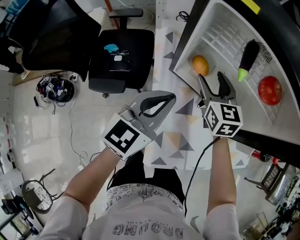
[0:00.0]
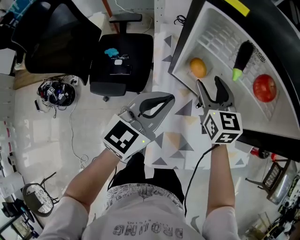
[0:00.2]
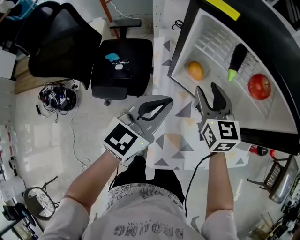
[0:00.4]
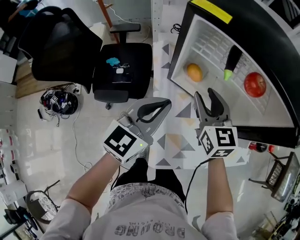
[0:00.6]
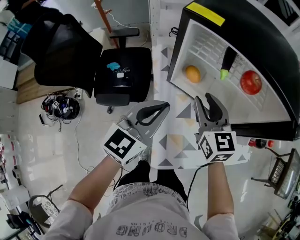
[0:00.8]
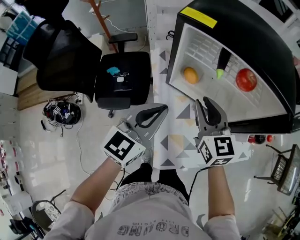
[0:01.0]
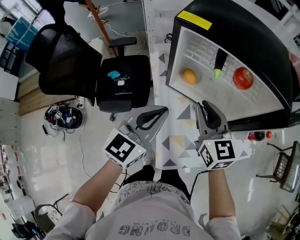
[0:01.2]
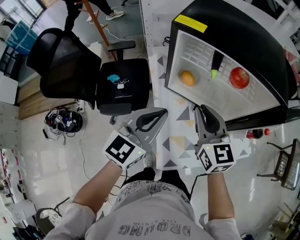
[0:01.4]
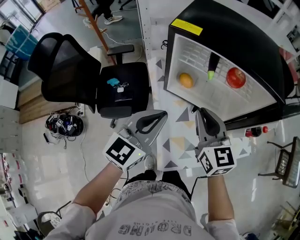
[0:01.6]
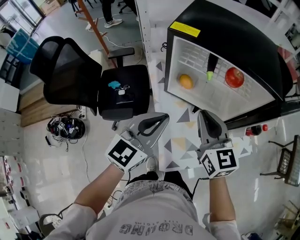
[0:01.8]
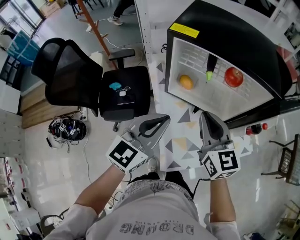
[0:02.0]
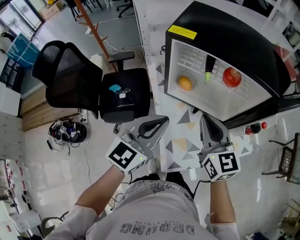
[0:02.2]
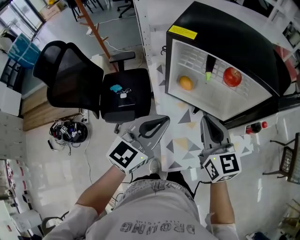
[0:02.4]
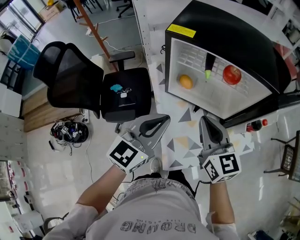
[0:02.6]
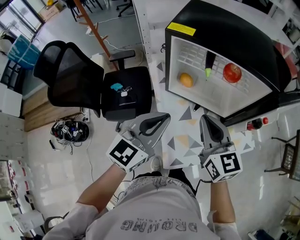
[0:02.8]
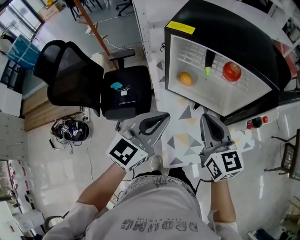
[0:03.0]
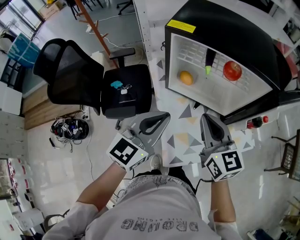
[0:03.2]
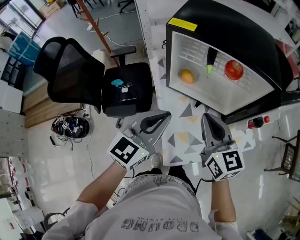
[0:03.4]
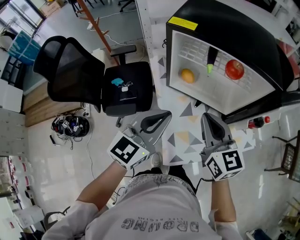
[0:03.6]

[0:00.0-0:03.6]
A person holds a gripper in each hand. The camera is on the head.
0:00.0 to 0:01.8: The left gripper heads upward and backward, covering approximately 15 cm. The right gripper moves backward and upward, about 25 cm, and closes its fingers.
0:01.8 to 0:03.6: The grippers make only small movements.

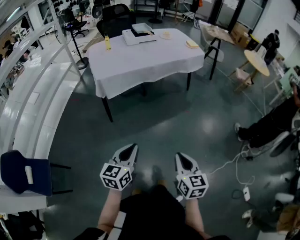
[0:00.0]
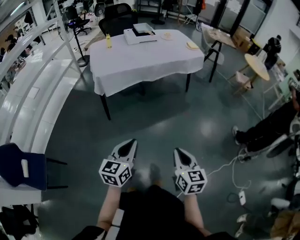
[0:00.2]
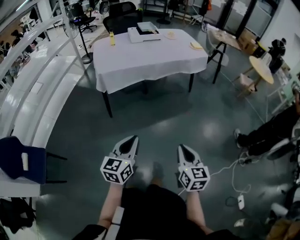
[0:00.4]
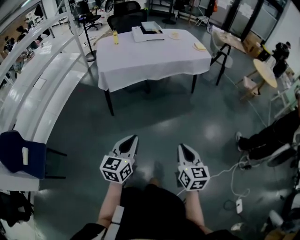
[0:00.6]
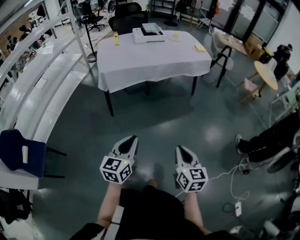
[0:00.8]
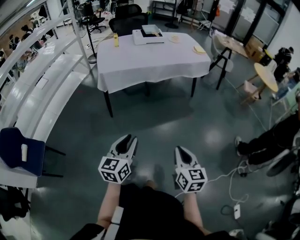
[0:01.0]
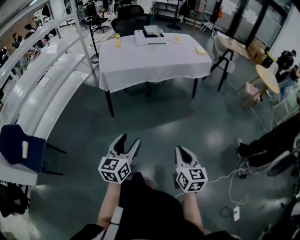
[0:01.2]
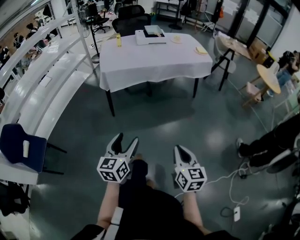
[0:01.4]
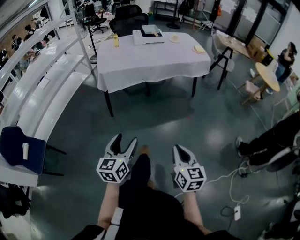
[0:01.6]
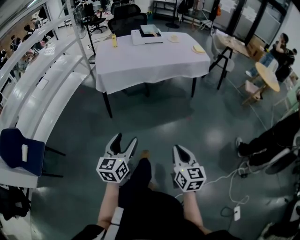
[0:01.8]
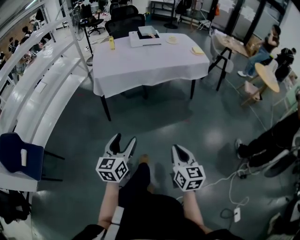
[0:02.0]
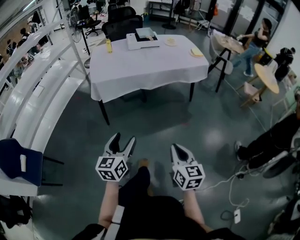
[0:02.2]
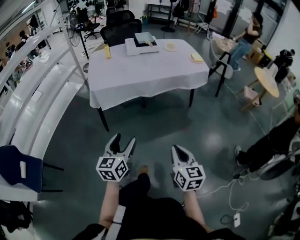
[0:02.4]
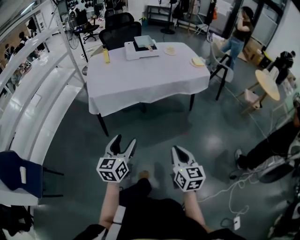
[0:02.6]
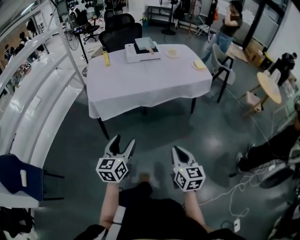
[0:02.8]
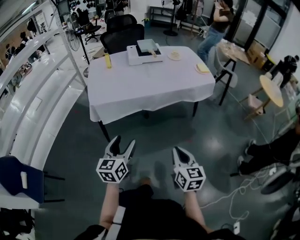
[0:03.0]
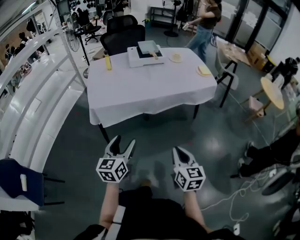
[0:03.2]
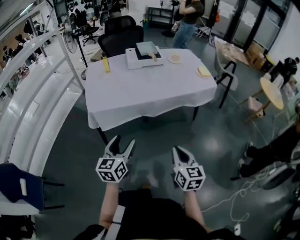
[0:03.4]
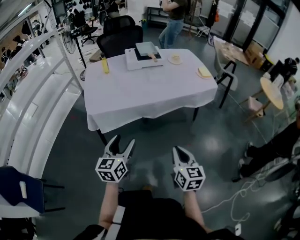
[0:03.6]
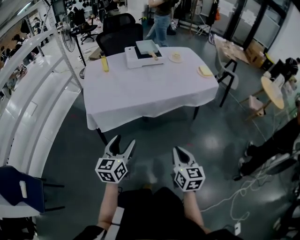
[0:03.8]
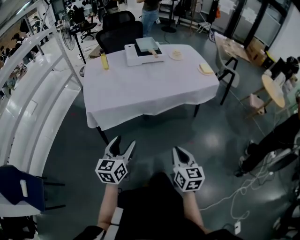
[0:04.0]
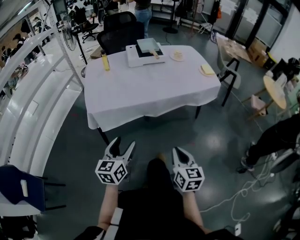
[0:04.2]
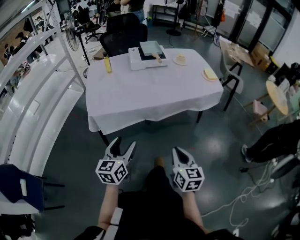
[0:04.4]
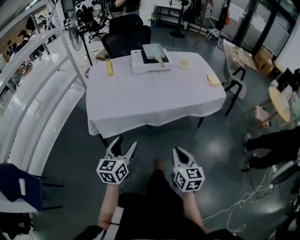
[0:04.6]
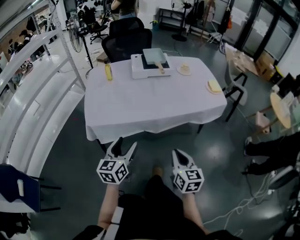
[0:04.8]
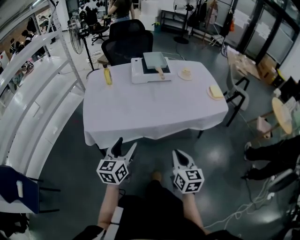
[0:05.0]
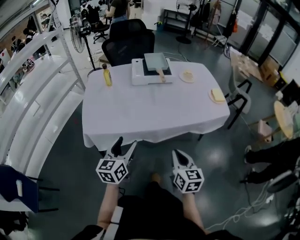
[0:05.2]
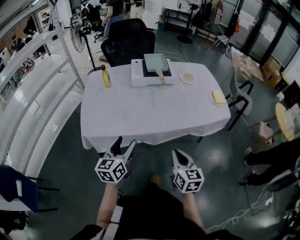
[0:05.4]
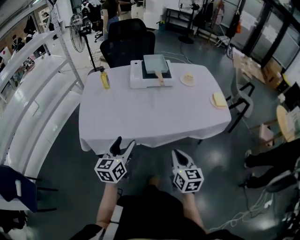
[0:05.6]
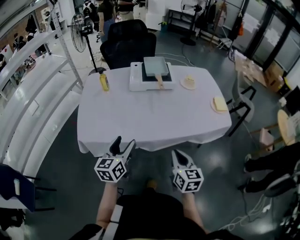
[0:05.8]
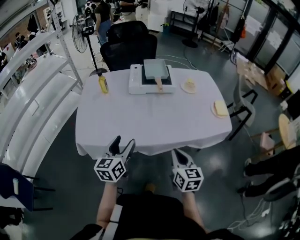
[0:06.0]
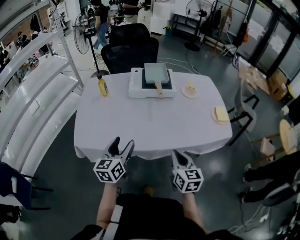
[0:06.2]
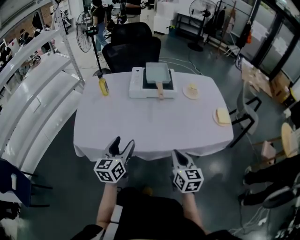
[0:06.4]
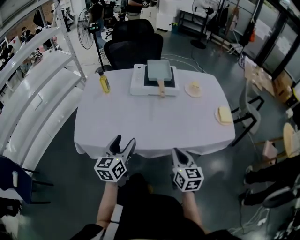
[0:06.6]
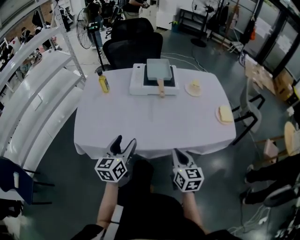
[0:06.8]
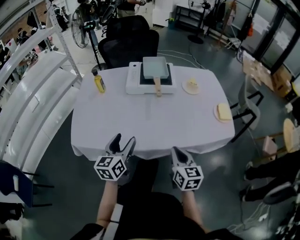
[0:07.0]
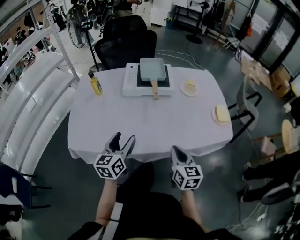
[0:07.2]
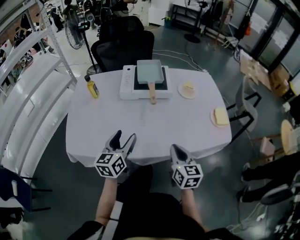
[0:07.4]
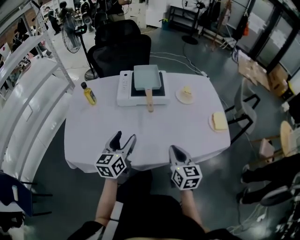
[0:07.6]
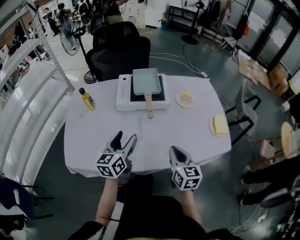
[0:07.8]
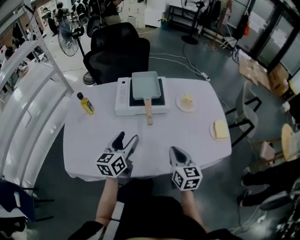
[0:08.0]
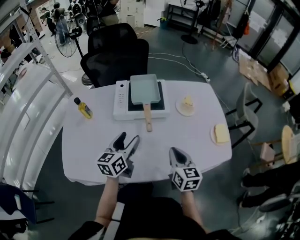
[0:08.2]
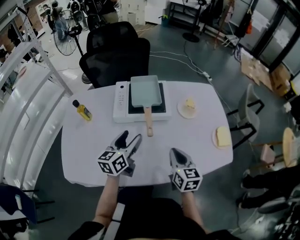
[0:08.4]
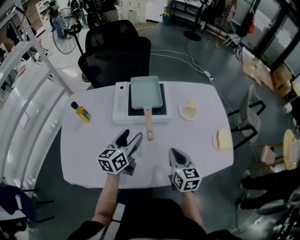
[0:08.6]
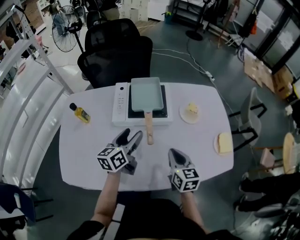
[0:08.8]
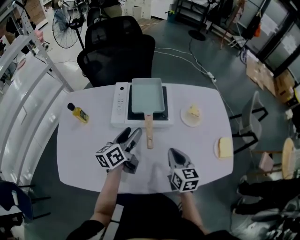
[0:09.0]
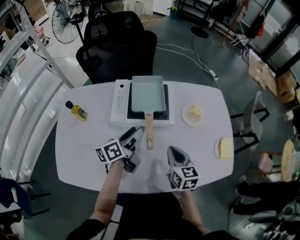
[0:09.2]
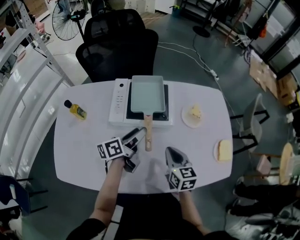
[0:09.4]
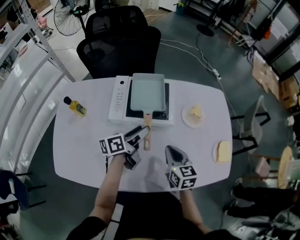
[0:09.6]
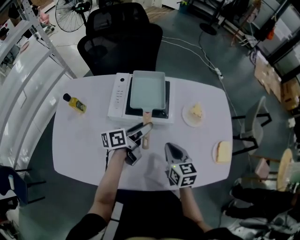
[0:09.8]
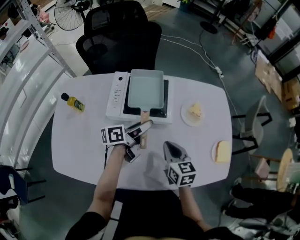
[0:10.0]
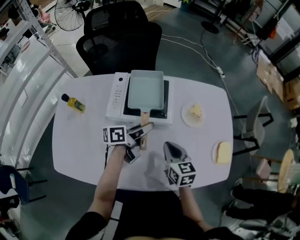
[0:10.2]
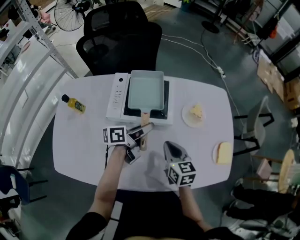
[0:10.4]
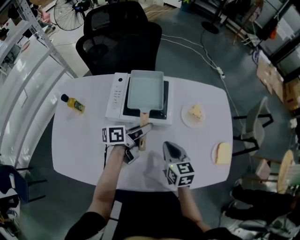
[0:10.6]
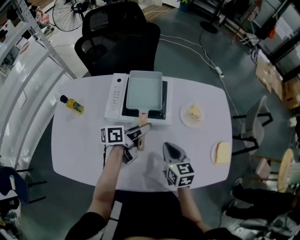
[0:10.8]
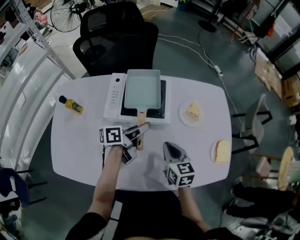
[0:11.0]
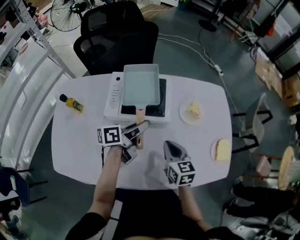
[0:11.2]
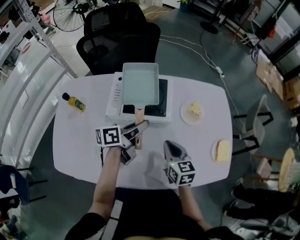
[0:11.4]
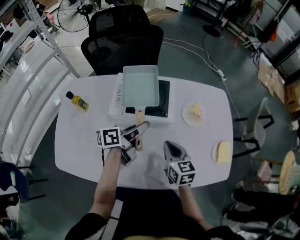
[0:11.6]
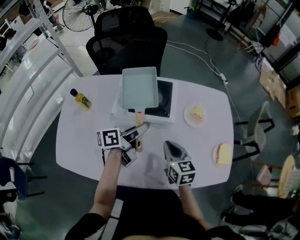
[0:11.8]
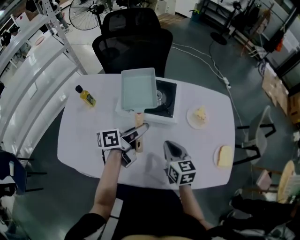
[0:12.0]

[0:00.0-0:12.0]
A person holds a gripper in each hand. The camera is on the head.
0:00.0 to 0:01.6: Both grippers move to the right, approximately 10 cm. The left gripper opens up.
0:01.6 to 0:03.0: Both grippers move forward, about 30 cm.
0:03.0 to 0:04.4: Both grippers travel together forward, some 10 cm.
0:04.4 to 0:06.0: The two grippers go about 30 cm forward.
0:06.0 to 0:07.6: The right gripper is displaced forward by approximately 15 cm; the left gripper moves forward and to the right, approximately 15 cm.
0:07.6 to 0:09.0: Both grippers travel together forward, roughly 20 cm. The left gripper rotates roughly 30 degrees.
0:09.0 to 0:10.4: The left gripper heads to the right and forward, covering approximately 10 cm, swivels about 30 degrees, and closes its fingers. The right gripper changes place by approximately 5 cm.
0:10.4 to 0:12.0: The left gripper travels backward by approximately 5 cm.

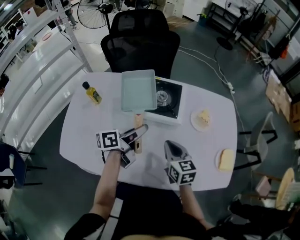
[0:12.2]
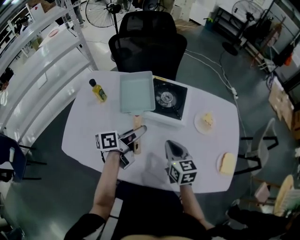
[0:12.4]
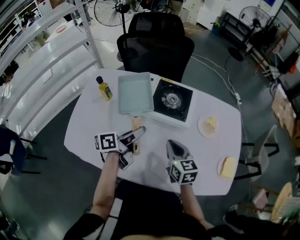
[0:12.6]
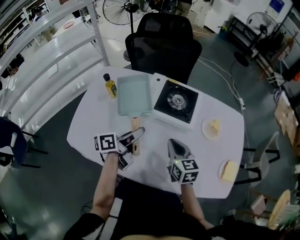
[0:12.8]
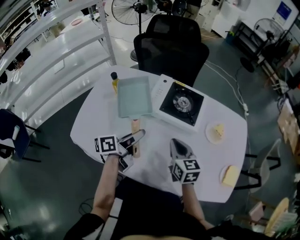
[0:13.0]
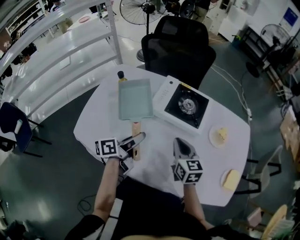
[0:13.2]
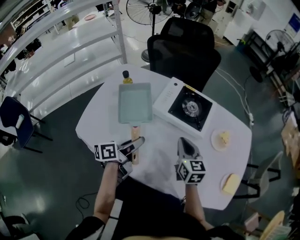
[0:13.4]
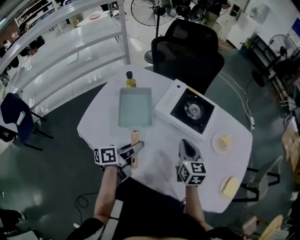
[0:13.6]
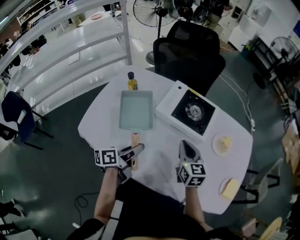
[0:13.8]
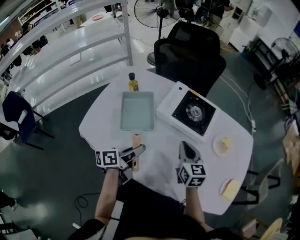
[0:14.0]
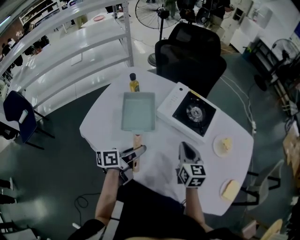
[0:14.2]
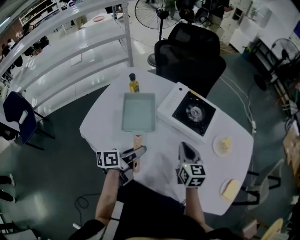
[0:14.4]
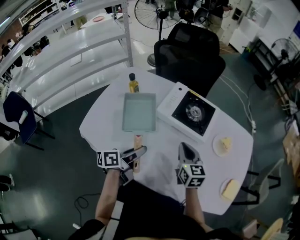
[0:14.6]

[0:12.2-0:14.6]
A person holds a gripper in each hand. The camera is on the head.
0:12.2 to 0:13.4: The right gripper travels to the left by about 5 cm; the left gripper goes some 15 cm to the left and backward.
0:13.4 to 0:14.6: The grippers stay close to where they were, moving slightly.

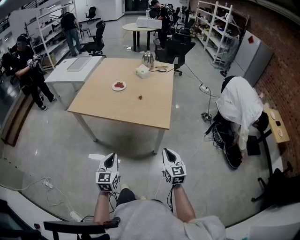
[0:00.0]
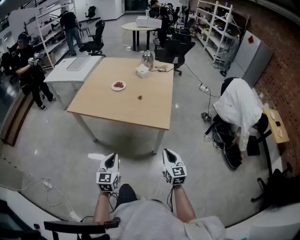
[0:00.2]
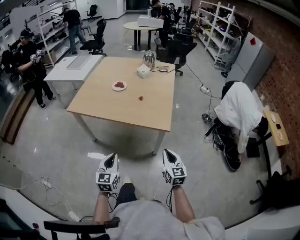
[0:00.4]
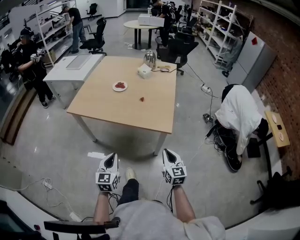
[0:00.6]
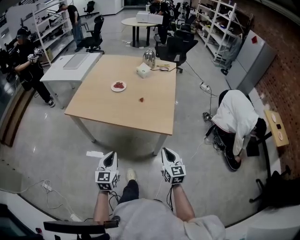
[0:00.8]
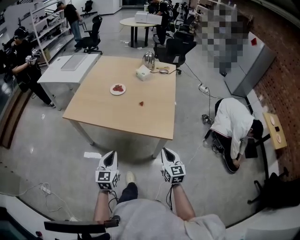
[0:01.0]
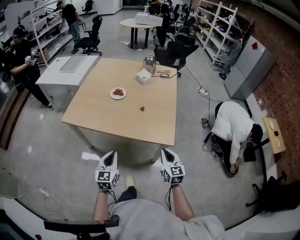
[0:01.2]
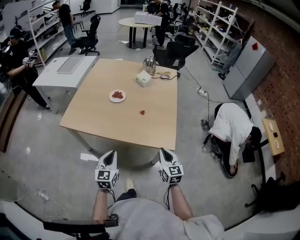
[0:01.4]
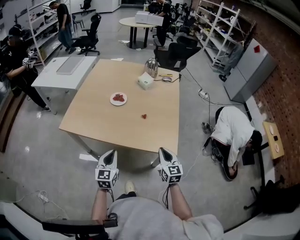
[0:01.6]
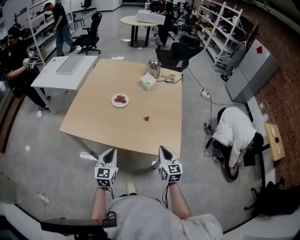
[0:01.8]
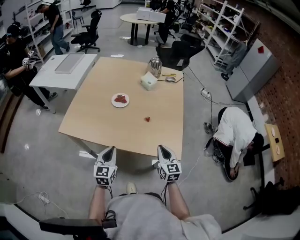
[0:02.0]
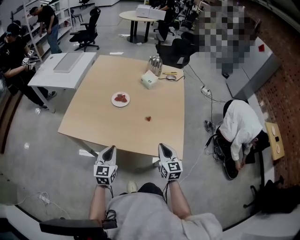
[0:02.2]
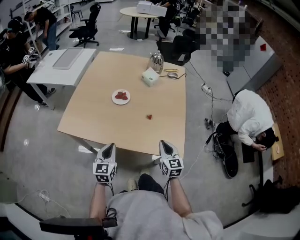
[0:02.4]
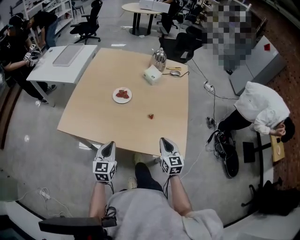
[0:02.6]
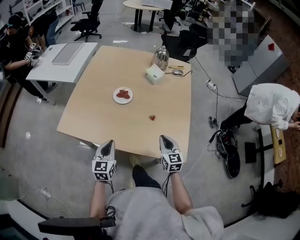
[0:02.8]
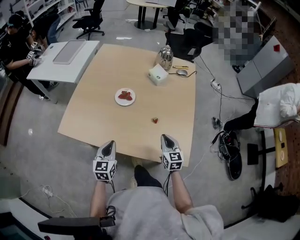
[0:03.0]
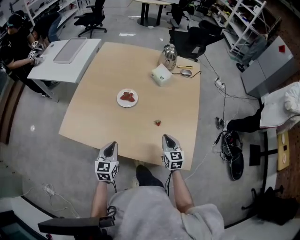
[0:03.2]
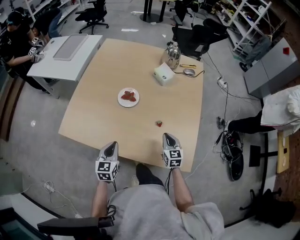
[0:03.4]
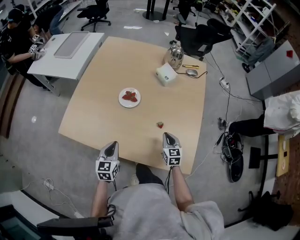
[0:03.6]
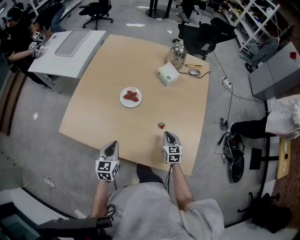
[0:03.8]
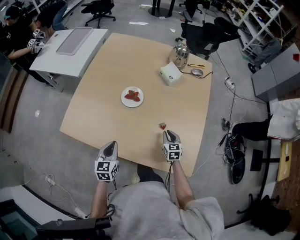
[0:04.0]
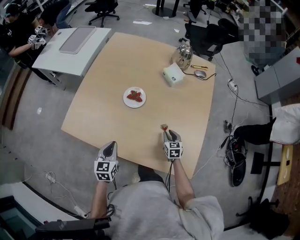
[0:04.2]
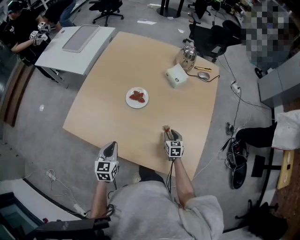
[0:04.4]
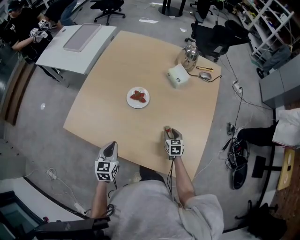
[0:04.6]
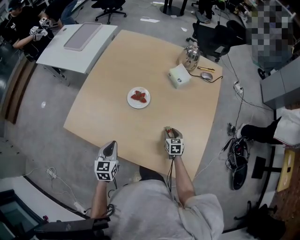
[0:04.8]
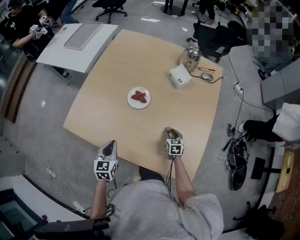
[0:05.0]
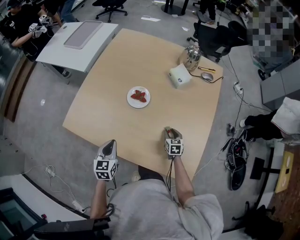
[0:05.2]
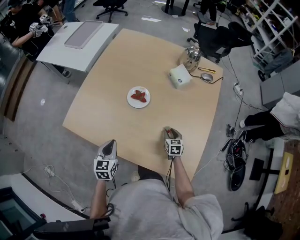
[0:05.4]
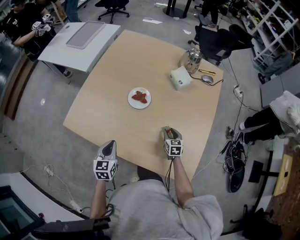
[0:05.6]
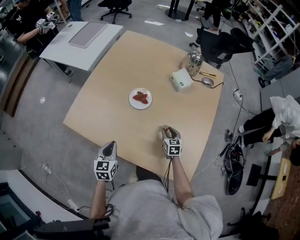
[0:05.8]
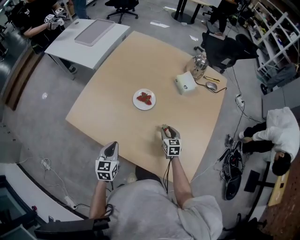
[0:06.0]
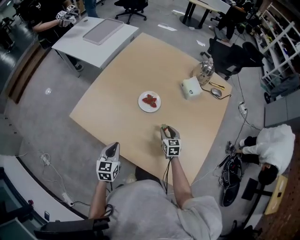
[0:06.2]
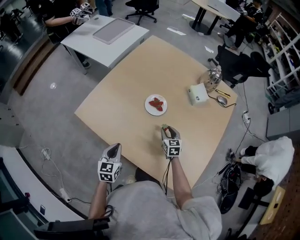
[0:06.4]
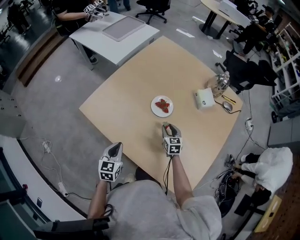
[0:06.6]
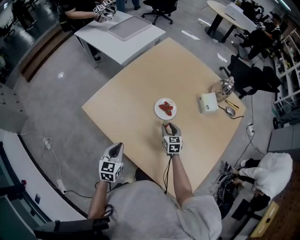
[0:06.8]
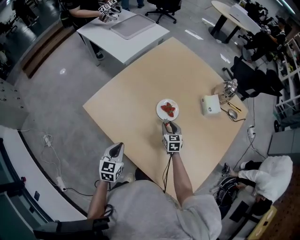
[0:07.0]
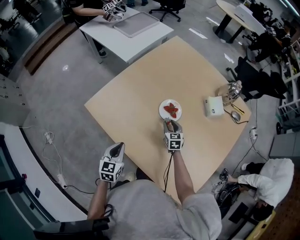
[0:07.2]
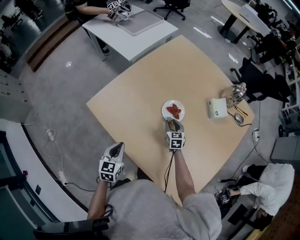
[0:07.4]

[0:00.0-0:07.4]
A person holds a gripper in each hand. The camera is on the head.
0:00.0 to 0:01.4: Both grippers travel together forward, about 20 cm.
0:01.4 to 0:03.0: Both grippers move forward, about 20 cm.
0:03.0 to 0:04.4: The left gripper shifts about 5 cm forward. The right gripper is displaced downward and forward by about 20 cm, swivels about 20 degrees, and opens its fingers.
0:04.4 to 0:06.0: The right gripper is displaced to the left by about 5 cm.
0:06.0 to 0:07.4: The right gripper goes roughly 20 cm forward and to the left. The left gripper heads to the left, covering some 5 cm.
